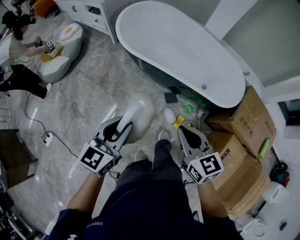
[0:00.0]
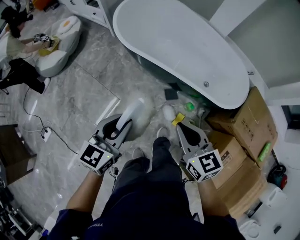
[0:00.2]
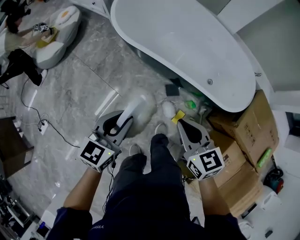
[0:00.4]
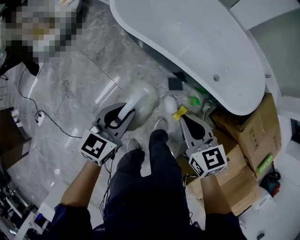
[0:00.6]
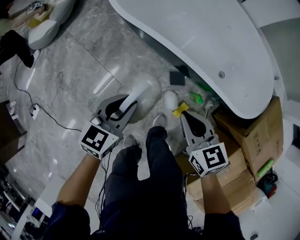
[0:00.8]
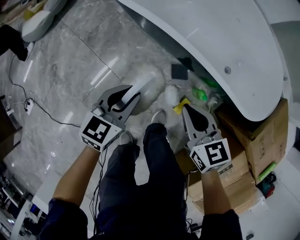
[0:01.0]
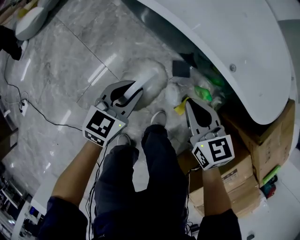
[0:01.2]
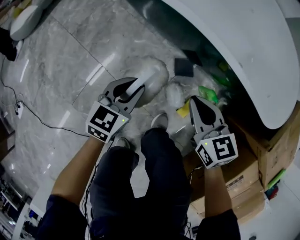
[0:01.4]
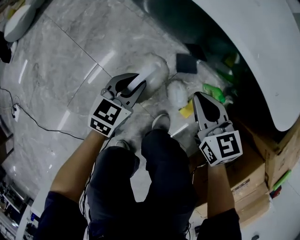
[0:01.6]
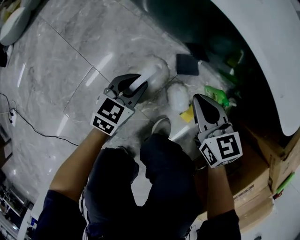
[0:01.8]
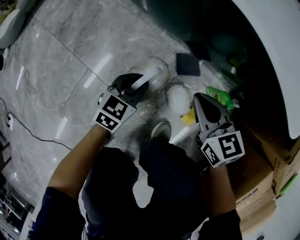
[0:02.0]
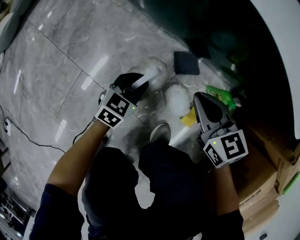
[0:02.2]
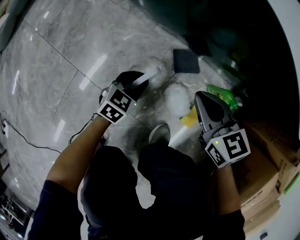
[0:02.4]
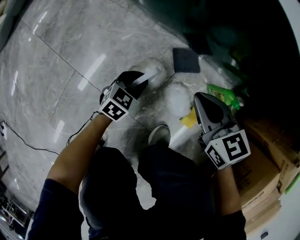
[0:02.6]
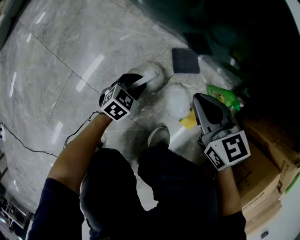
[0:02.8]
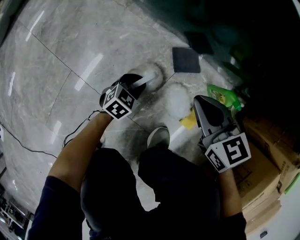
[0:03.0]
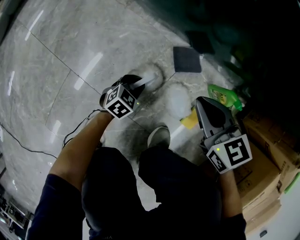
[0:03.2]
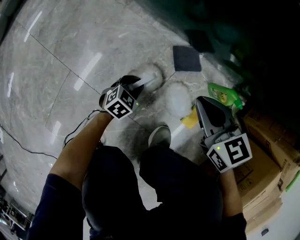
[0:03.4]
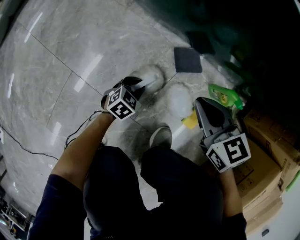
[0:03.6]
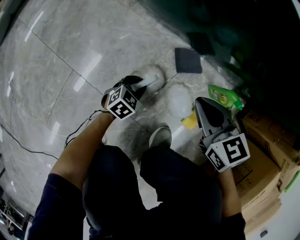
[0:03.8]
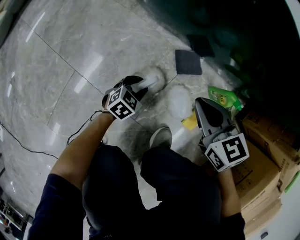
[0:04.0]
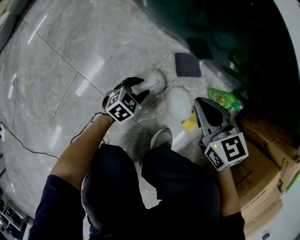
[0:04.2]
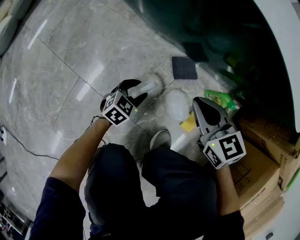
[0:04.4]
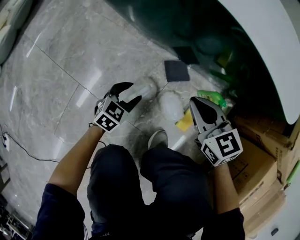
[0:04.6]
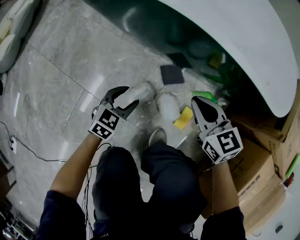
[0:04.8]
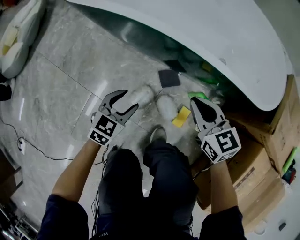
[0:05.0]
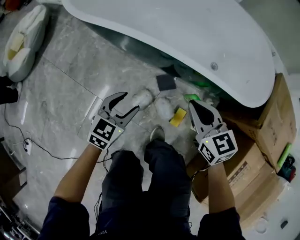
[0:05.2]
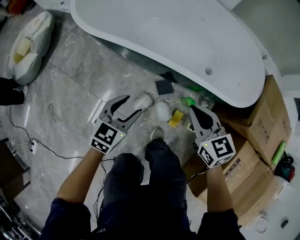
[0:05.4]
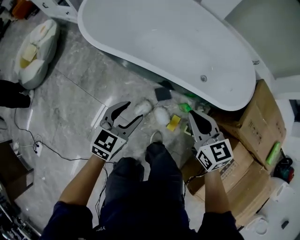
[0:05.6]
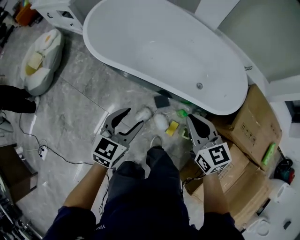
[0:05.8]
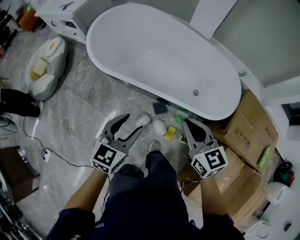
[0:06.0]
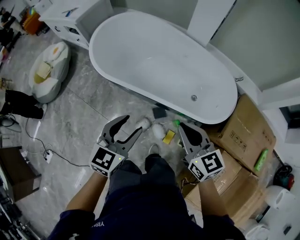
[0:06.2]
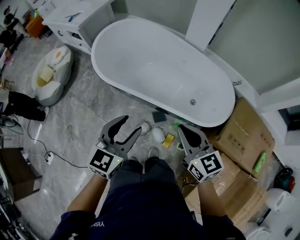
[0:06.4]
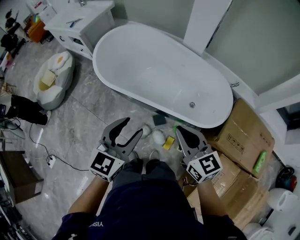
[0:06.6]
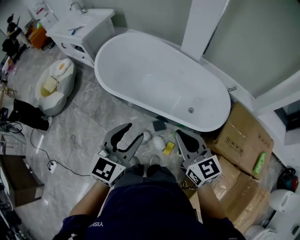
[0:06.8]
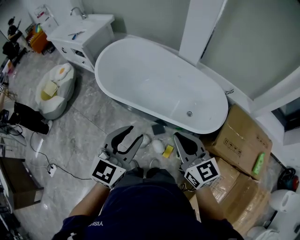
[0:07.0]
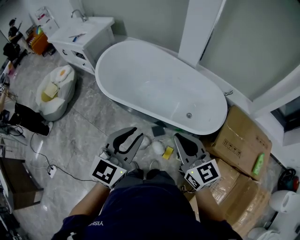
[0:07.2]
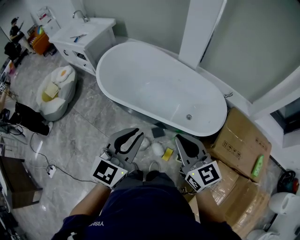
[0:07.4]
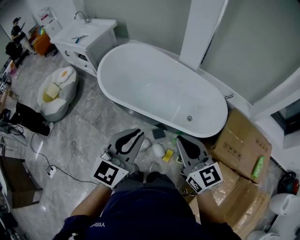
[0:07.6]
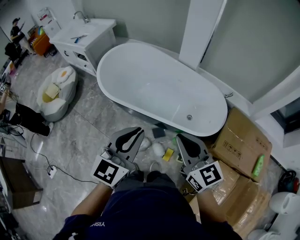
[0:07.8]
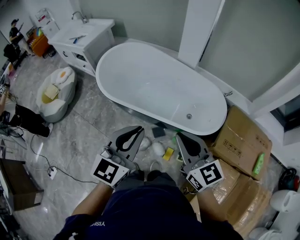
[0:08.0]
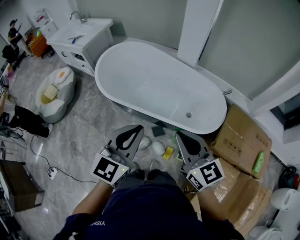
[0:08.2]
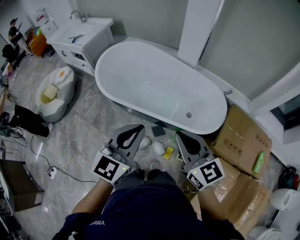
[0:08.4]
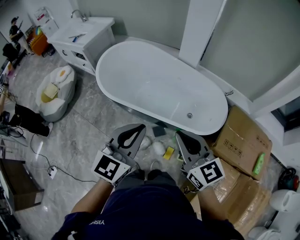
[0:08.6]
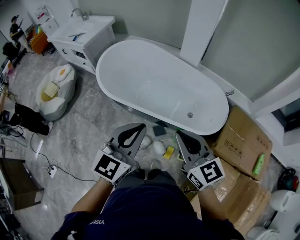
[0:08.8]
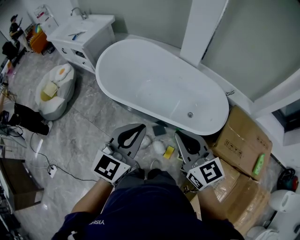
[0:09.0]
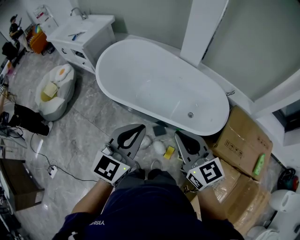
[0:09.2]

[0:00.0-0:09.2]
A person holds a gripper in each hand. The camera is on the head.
0:00.0 to 0:01.6: The two grippers go some 60 cm downward. The left gripper swivels about 20 degrees.
0:01.6 to 0:03.0: The left gripper goes some 30 cm downward, and turns by about 20 degrees; the right gripper goes about 15 cm downward.
0:03.0 to 0:04.6: The left gripper goes about 10 cm upward, and opens its fingers; the right gripper moves upward, roughly 5 cm.
0:04.6 to 0:06.2: The two grippers go some 70 cm upward. The left gripper changes its angle by some 20 degrees.
0:06.2 to 0:07.6: The left gripper shifts roughly 15 cm upward, and closes. The right gripper travels upward and backward by roughly 15 cm.
0:07.6 to 0:09.2: The grippers stay close to where they were, moving slightly.

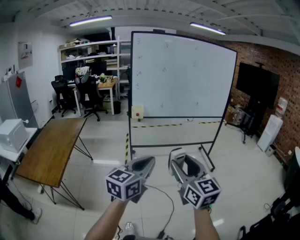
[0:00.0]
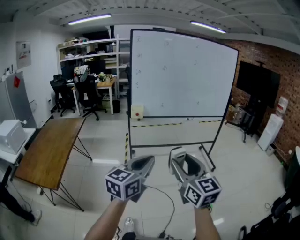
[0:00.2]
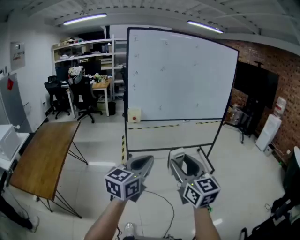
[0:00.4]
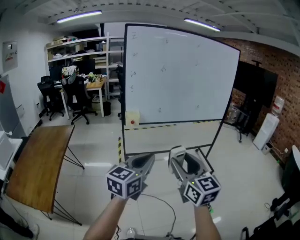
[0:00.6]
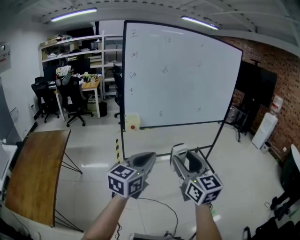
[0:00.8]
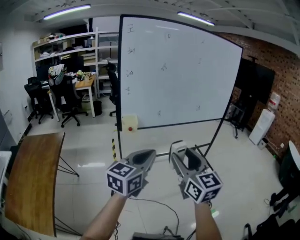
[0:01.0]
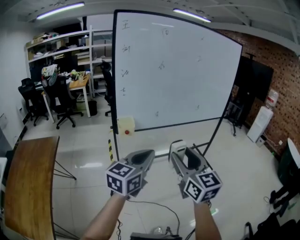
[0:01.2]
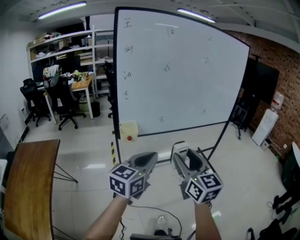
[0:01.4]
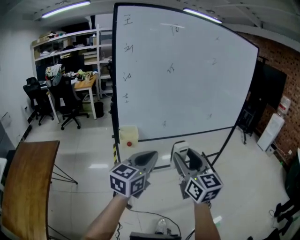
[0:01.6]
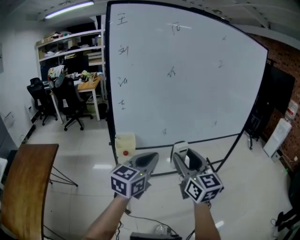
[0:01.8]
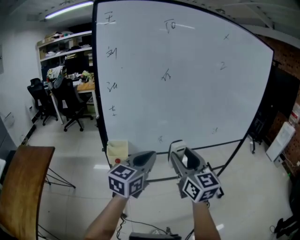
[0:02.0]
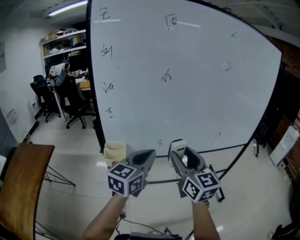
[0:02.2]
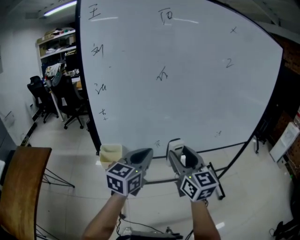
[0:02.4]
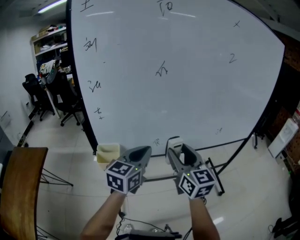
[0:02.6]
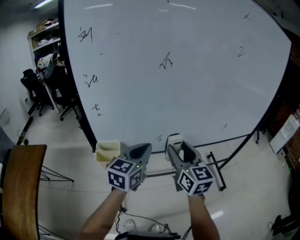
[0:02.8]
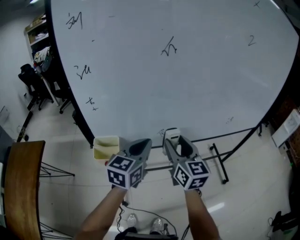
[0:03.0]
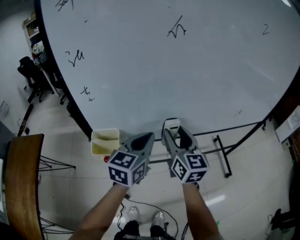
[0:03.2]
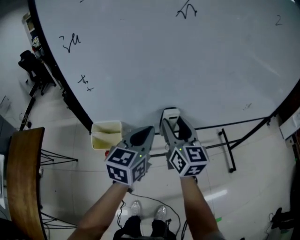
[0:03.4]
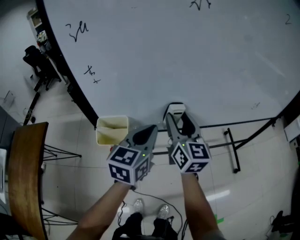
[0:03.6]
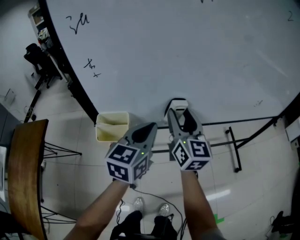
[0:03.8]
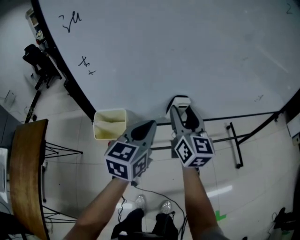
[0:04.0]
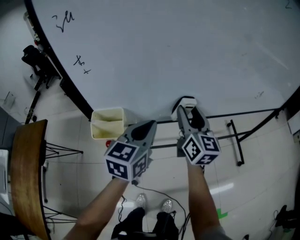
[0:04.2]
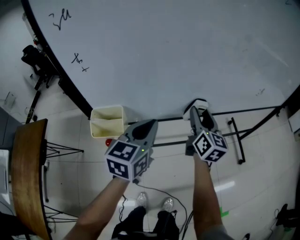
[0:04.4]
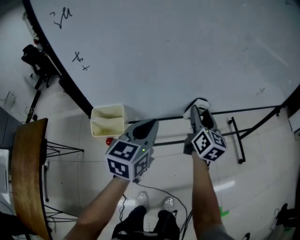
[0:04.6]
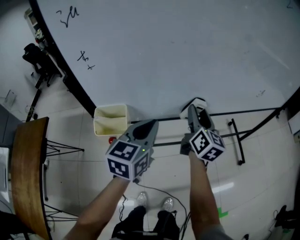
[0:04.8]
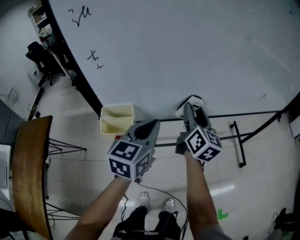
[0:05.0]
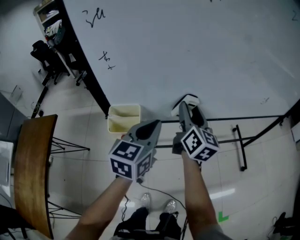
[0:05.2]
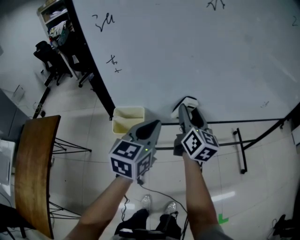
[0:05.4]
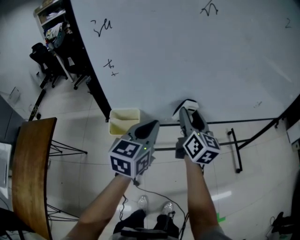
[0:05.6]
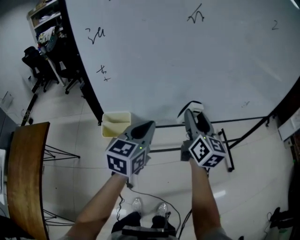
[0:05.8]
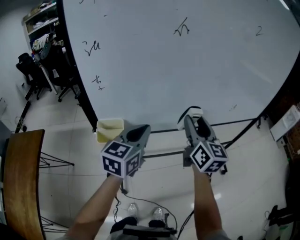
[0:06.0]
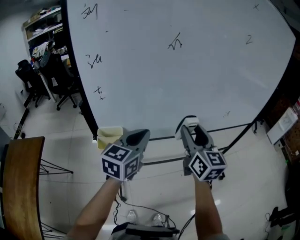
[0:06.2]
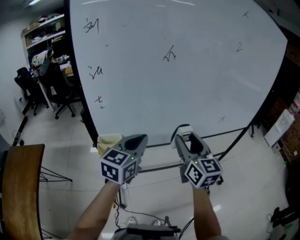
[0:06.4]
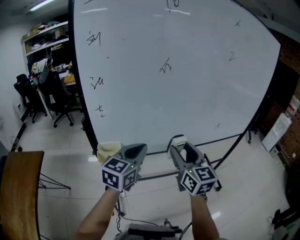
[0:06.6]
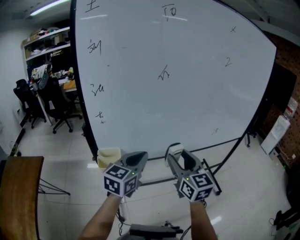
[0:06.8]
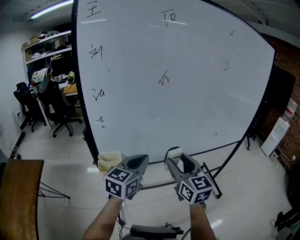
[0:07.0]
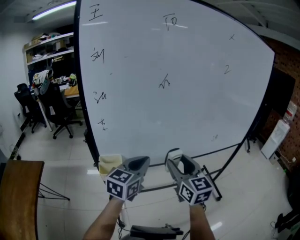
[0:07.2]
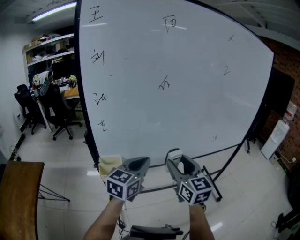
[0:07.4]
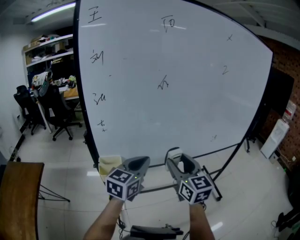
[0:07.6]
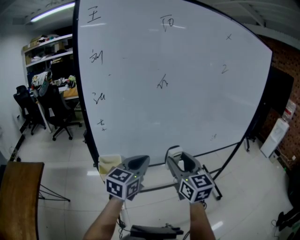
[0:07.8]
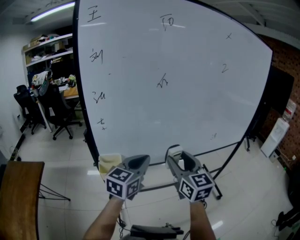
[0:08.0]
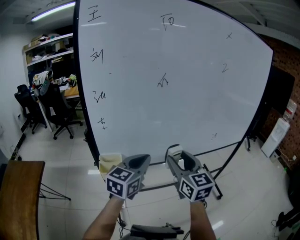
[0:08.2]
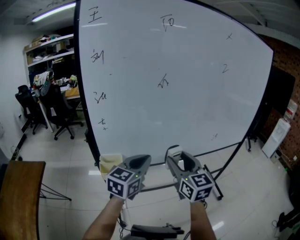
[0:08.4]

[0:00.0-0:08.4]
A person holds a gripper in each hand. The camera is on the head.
0:00.0 to 0:01.4: Both grippers are carried forward, some 40 cm.
0:01.4 to 0:02.8: The grippers both shift forward by roughly 35 cm.
0:02.8 to 0:04.2: The left gripper shifts roughly 10 cm downward. Meanwhile the right gripper shifts roughly 15 cm downward and forward.
0:04.2 to 0:05.6: The right gripper moves approximately 5 cm to the left and comes back, while the left gripper ends up some 5 cm from where it was.
0:05.6 to 0:07.0: The left gripper moves upward and to the right, about 10 cm. Meanwhile the right gripper shifts roughly 15 cm backward, upward and to the right, and turns by roughly 20 degrees.
0:07.0 to 0:08.4: There are only small adjustments of the grippers.

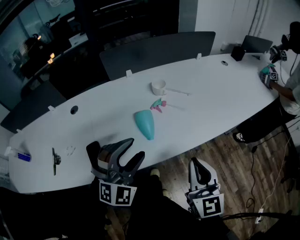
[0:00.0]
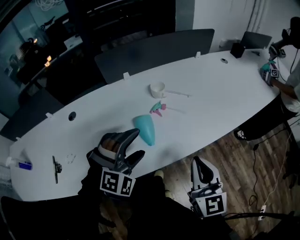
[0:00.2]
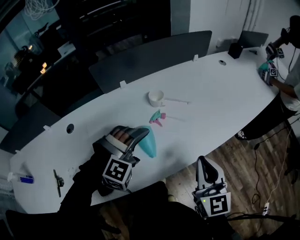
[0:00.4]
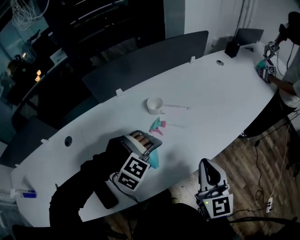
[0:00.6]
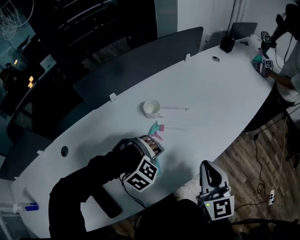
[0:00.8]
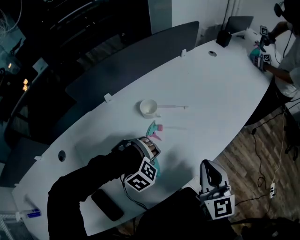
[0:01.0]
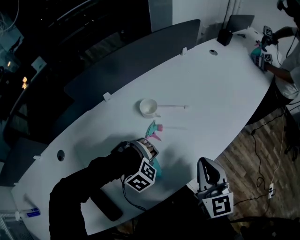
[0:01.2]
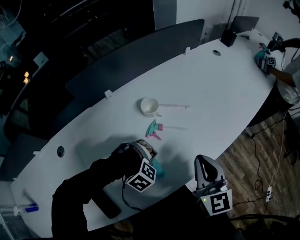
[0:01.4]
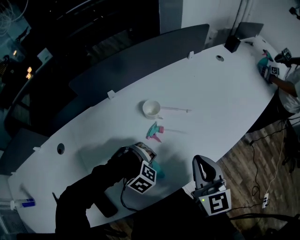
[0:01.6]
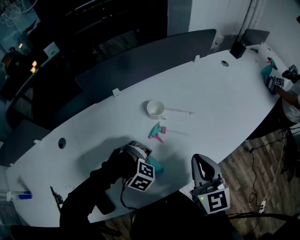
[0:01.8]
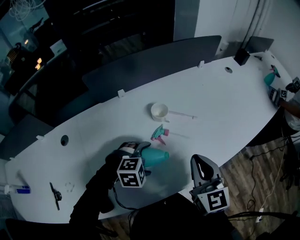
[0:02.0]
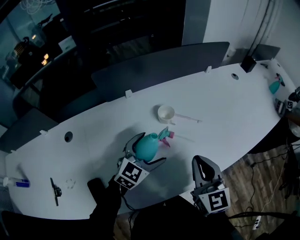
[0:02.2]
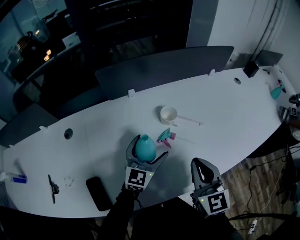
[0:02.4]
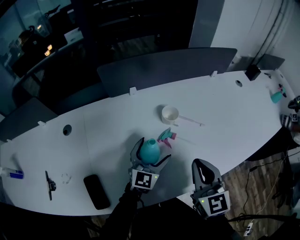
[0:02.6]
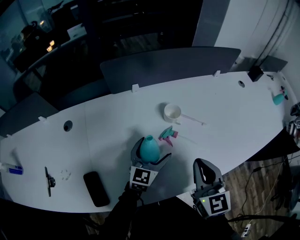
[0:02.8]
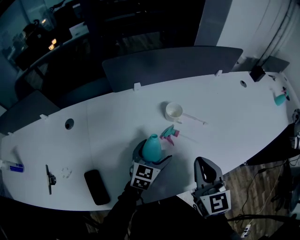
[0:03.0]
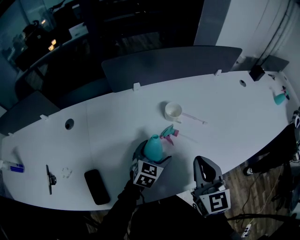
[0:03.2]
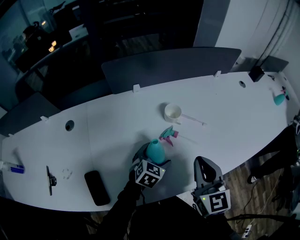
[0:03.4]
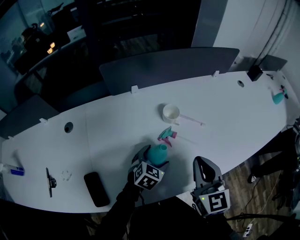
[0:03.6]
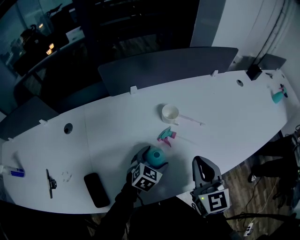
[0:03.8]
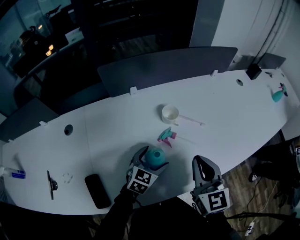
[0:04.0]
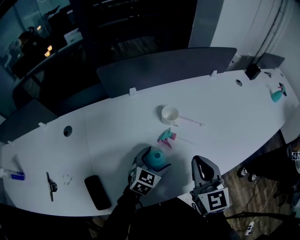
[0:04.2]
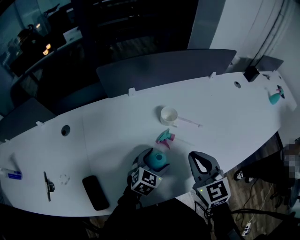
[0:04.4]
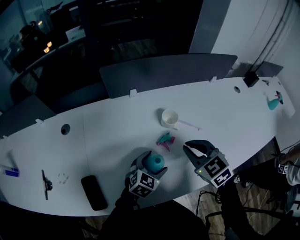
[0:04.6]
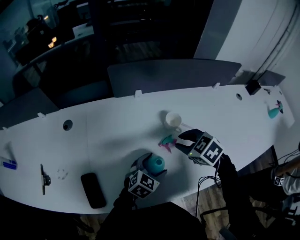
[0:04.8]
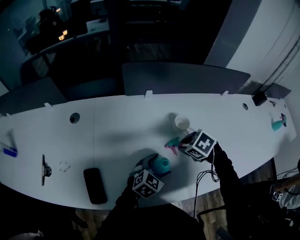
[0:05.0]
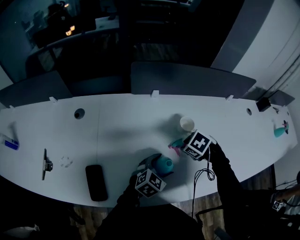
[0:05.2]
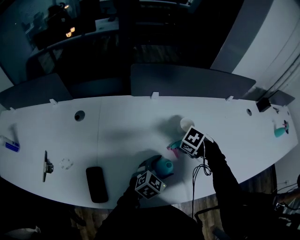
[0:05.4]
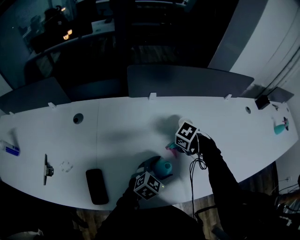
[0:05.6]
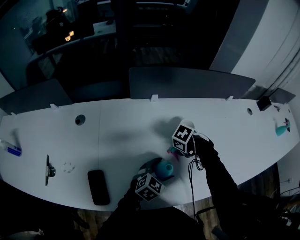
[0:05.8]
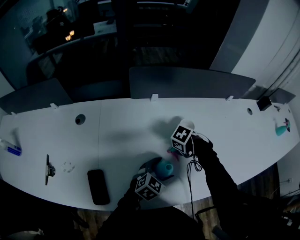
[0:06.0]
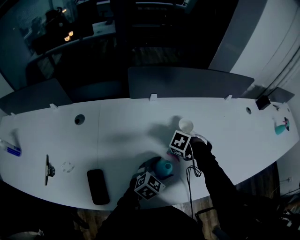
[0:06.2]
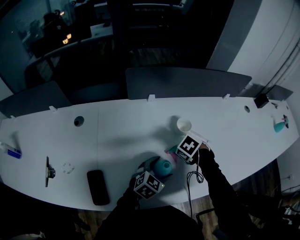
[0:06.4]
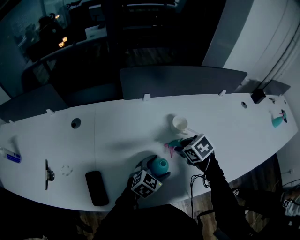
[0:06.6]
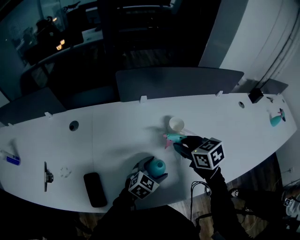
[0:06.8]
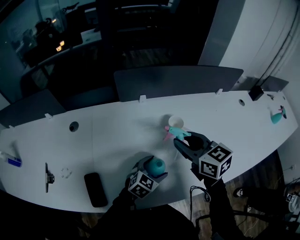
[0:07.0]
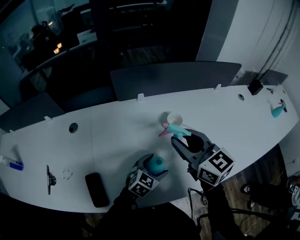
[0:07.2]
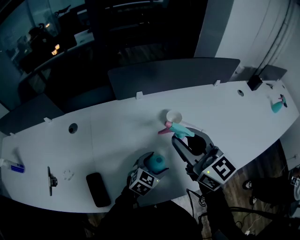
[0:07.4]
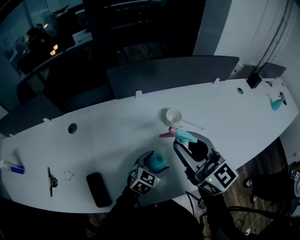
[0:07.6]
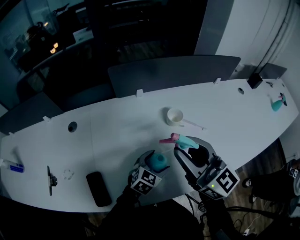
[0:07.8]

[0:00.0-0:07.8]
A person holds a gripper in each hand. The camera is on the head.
0:00.0 to 0:01.6: The left gripper travels downward by approximately 25 cm, points its fingers about 70 degrees further downward, and opens up. The right gripper shifts by approximately 20 cm.
0:01.6 to 0:03.2: The left gripper rotates around the line of its fingers by some 100 degrees, counterclockwise from behind.
0:03.2 to 0:04.6: The right gripper goes some 5 cm forward, and swivels approximately 40 degrees.
0:04.6 to 0:06.2: The right gripper travels downward by some 15 cm, points its fingers approximately 50 degrees further downward, and opens up.
0:06.2 to 0:07.8: The right gripper travels upward by about 30 cm, and tips its fingers upward by roughly 90 degrees.
